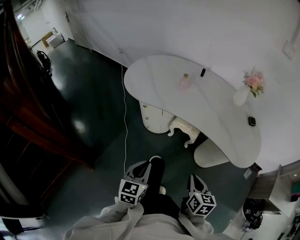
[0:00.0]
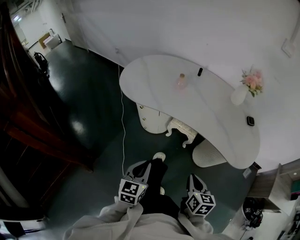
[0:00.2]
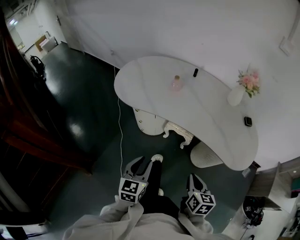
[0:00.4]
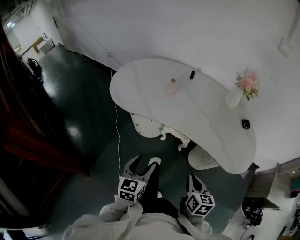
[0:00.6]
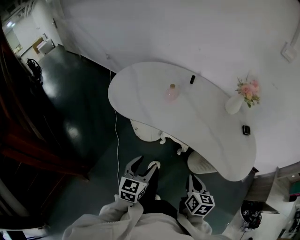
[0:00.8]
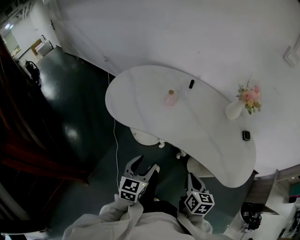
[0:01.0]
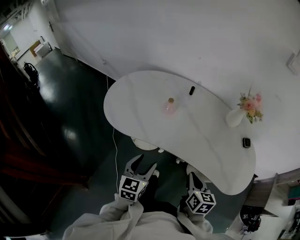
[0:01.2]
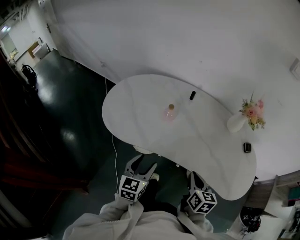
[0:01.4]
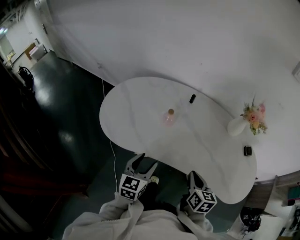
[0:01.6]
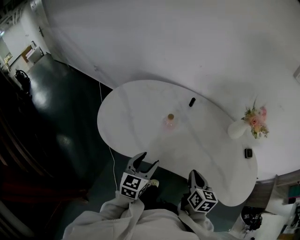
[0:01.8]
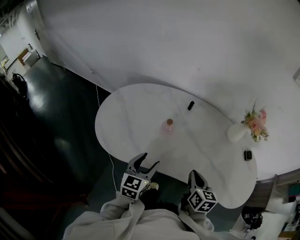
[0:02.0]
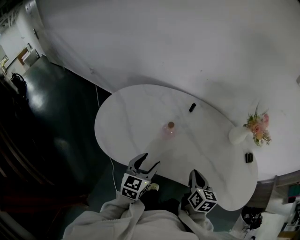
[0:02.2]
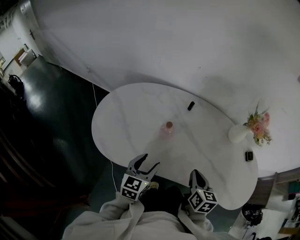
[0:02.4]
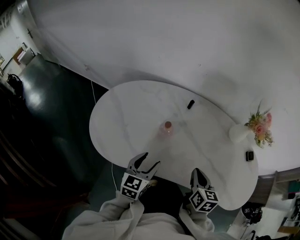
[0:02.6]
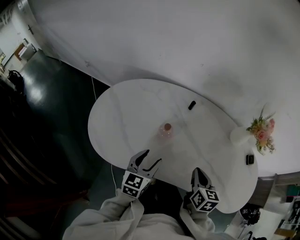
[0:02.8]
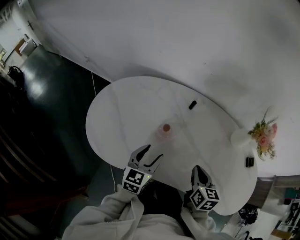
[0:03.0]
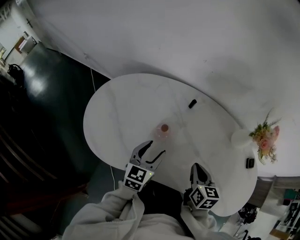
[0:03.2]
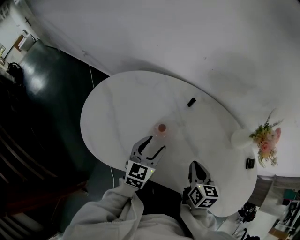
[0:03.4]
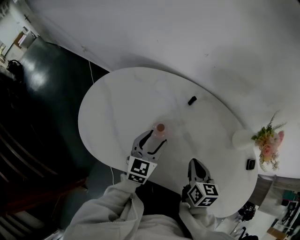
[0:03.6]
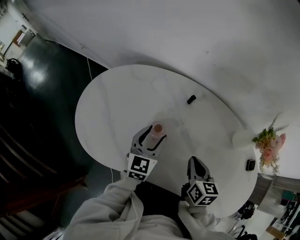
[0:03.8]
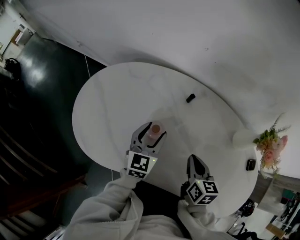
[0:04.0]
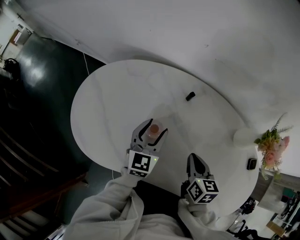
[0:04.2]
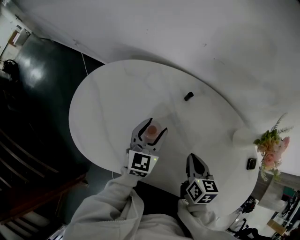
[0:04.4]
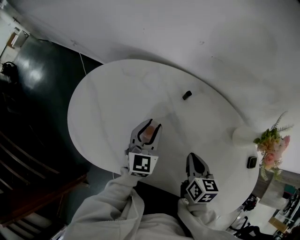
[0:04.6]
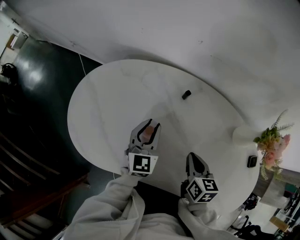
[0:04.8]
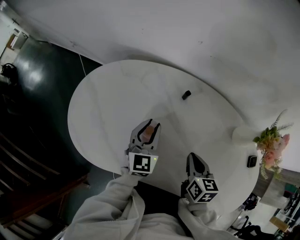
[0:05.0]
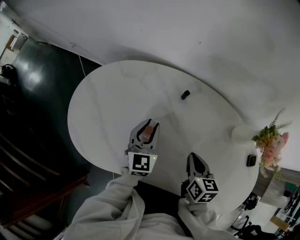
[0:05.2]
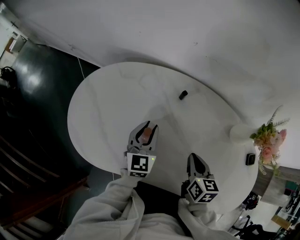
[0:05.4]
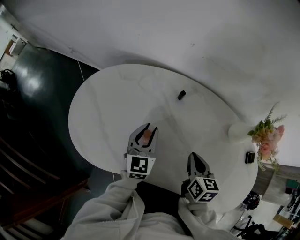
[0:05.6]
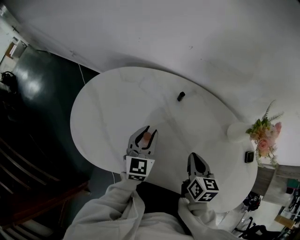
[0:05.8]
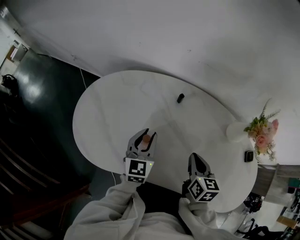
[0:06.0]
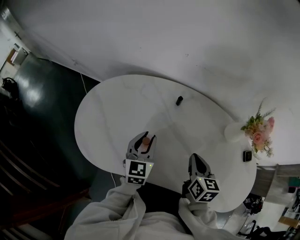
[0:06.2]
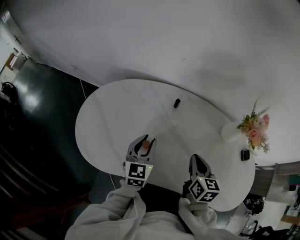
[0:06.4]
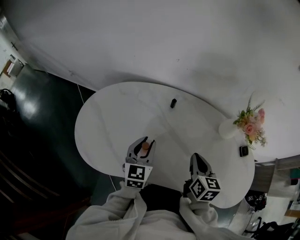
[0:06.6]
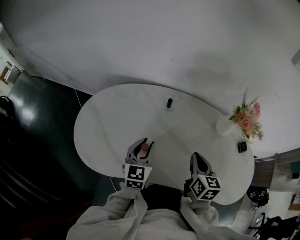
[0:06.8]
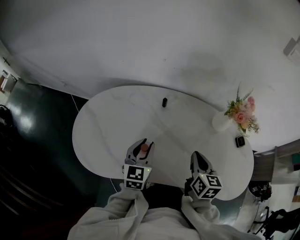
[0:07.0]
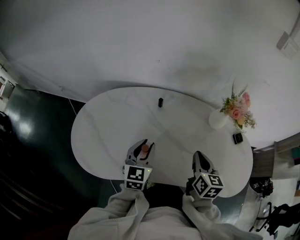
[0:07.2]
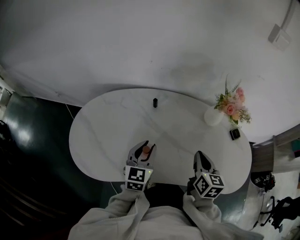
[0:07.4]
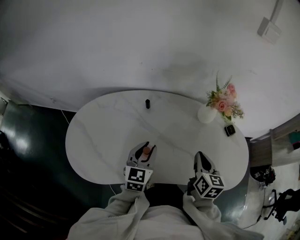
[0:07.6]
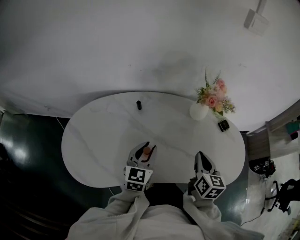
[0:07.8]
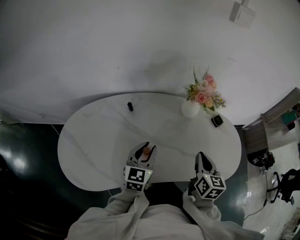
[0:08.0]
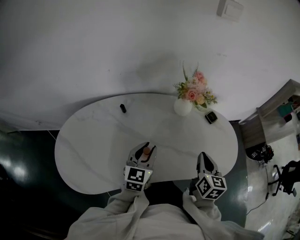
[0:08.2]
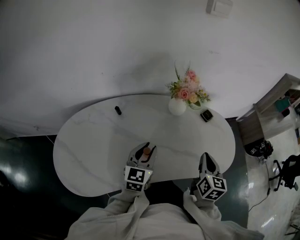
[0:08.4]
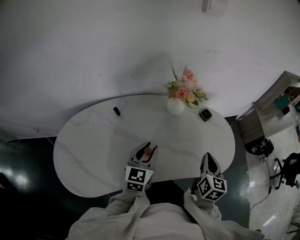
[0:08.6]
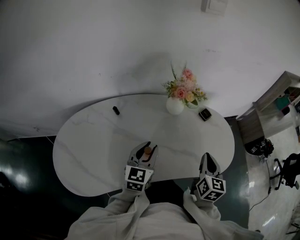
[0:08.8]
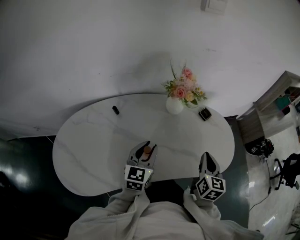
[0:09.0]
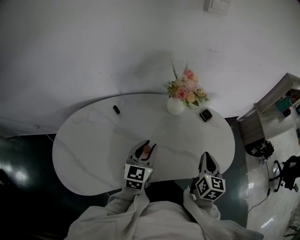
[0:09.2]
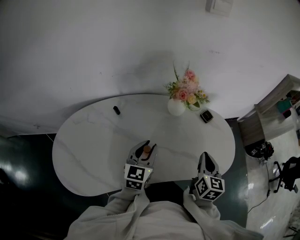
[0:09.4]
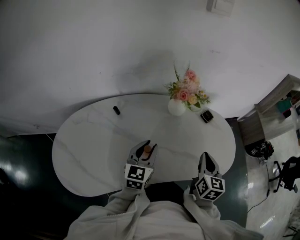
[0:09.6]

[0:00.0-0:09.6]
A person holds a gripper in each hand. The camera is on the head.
0:00.0 to 0:01.6: The two grippers go roughly 30 cm forward. The left gripper opens.
0:01.6 to 0:03.2: The two grippers go roughly 15 cm forward.
0:03.2 to 0:04.8: The right gripper travels forward by some 5 cm; the left gripper moves forward, some 10 cm, and closes.
0:04.8 to 0:06.4: The left gripper is displaced backward by some 5 cm; the right gripper shifts approximately 5 cm upward.
0:06.4 to 0:08.0: The right gripper ends up approximately 20 cm from where it was, and rotates roughly 30 degrees. The left gripper changes place by roughly 15 cm, and rotates approximately 30 degrees.
0:08.0 to 0:09.6: Both grippers move to the right, roughly 5 cm.

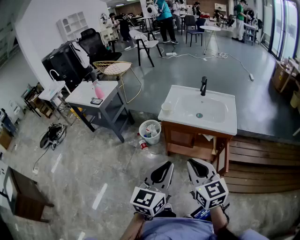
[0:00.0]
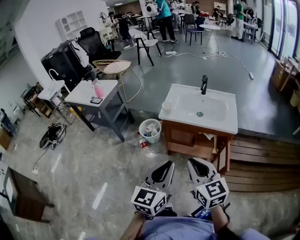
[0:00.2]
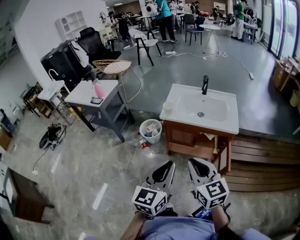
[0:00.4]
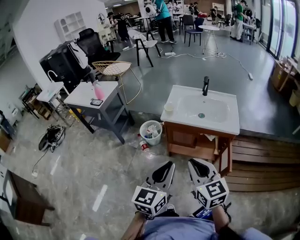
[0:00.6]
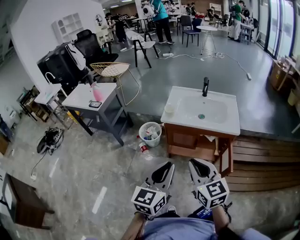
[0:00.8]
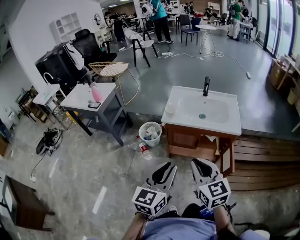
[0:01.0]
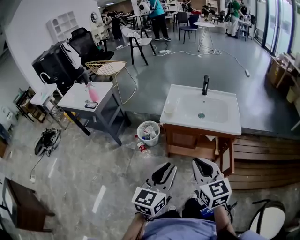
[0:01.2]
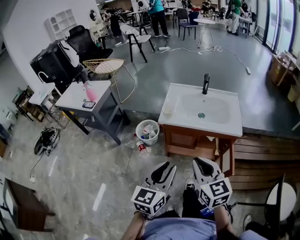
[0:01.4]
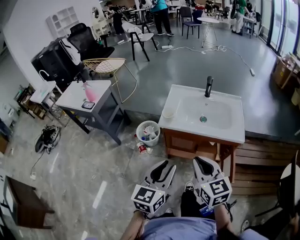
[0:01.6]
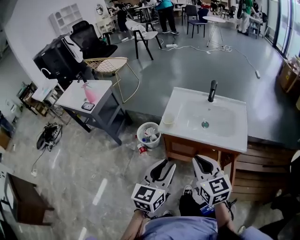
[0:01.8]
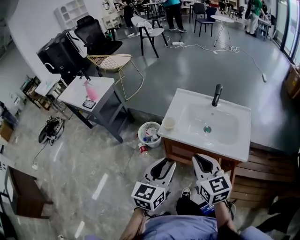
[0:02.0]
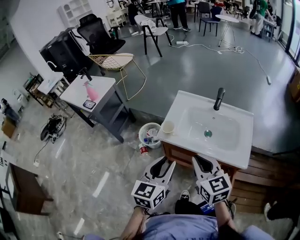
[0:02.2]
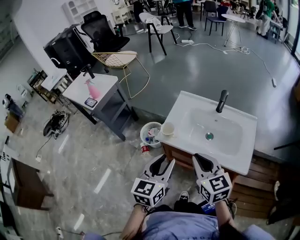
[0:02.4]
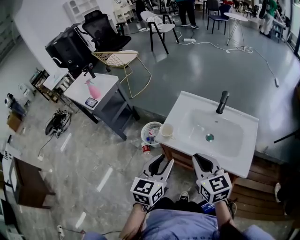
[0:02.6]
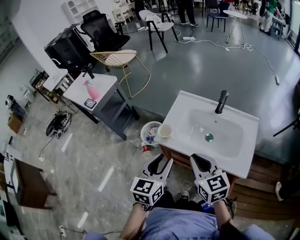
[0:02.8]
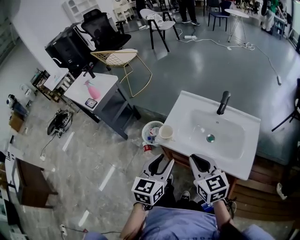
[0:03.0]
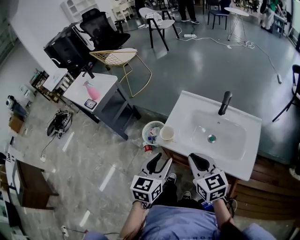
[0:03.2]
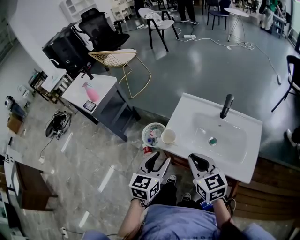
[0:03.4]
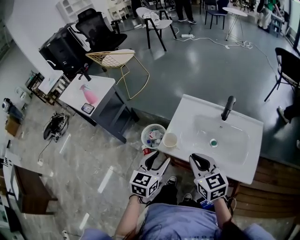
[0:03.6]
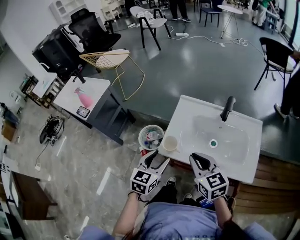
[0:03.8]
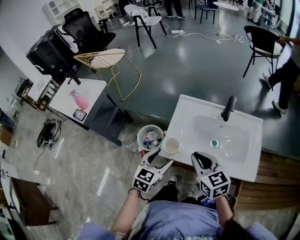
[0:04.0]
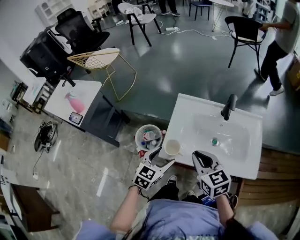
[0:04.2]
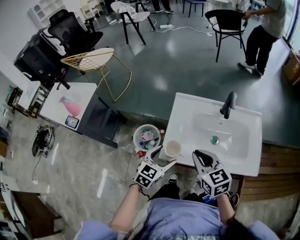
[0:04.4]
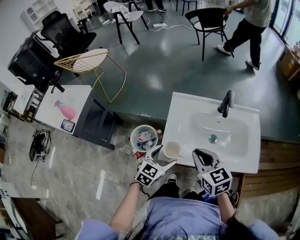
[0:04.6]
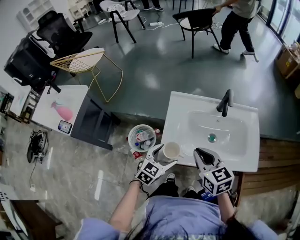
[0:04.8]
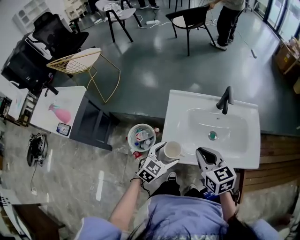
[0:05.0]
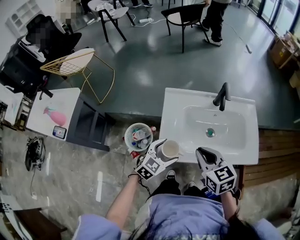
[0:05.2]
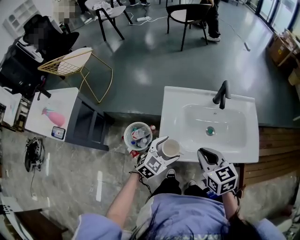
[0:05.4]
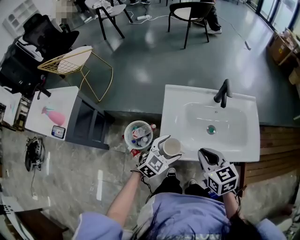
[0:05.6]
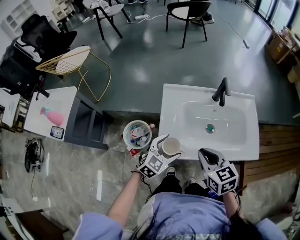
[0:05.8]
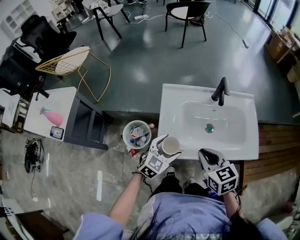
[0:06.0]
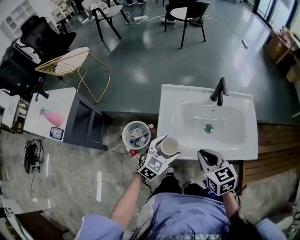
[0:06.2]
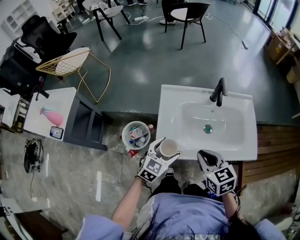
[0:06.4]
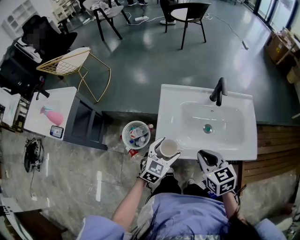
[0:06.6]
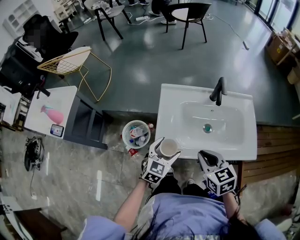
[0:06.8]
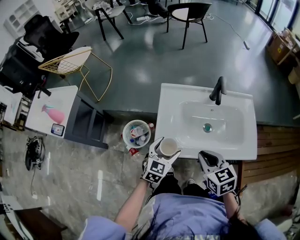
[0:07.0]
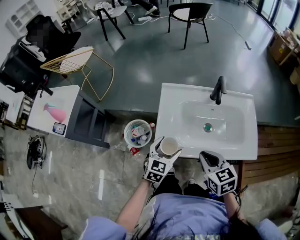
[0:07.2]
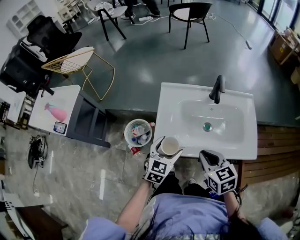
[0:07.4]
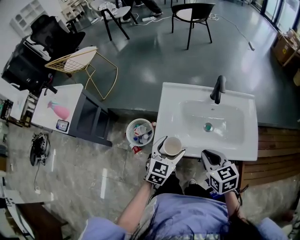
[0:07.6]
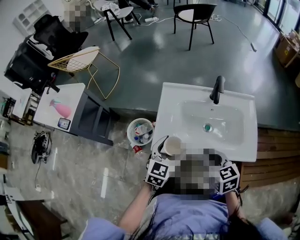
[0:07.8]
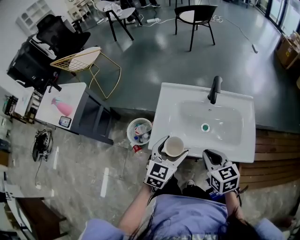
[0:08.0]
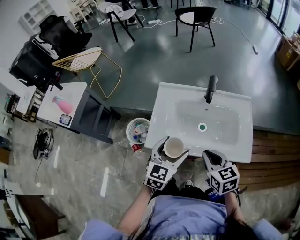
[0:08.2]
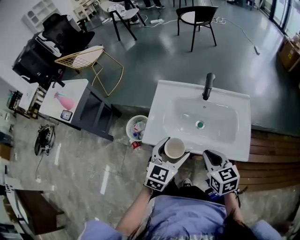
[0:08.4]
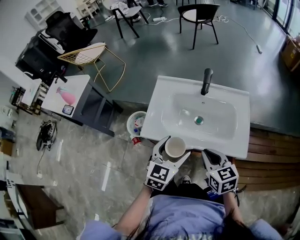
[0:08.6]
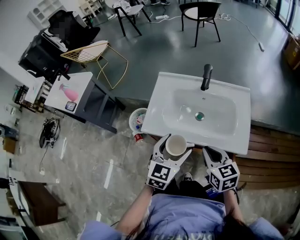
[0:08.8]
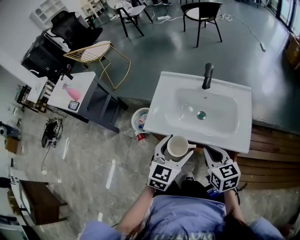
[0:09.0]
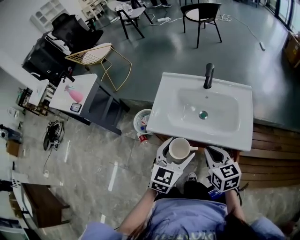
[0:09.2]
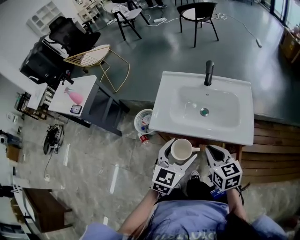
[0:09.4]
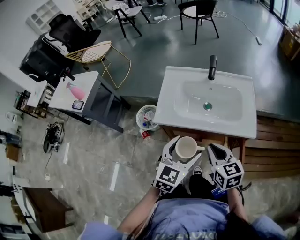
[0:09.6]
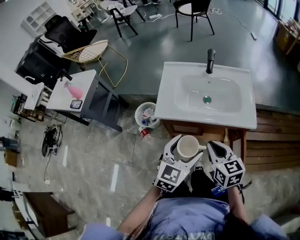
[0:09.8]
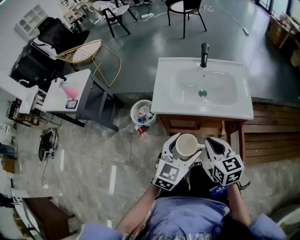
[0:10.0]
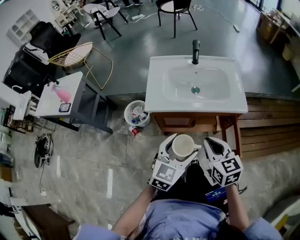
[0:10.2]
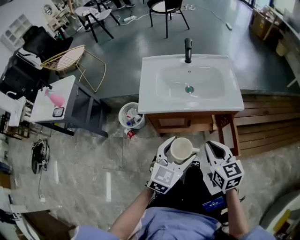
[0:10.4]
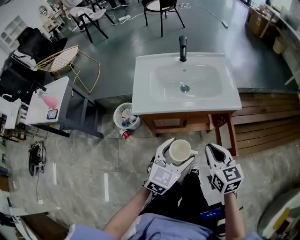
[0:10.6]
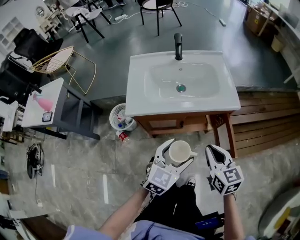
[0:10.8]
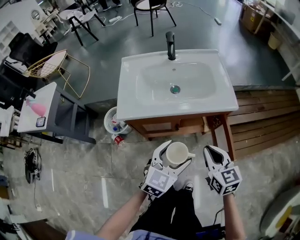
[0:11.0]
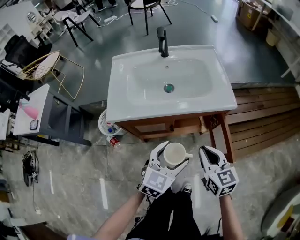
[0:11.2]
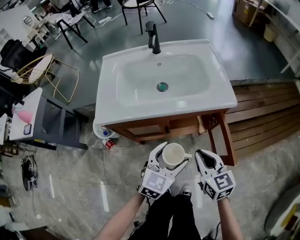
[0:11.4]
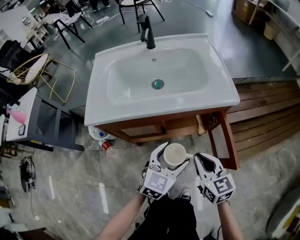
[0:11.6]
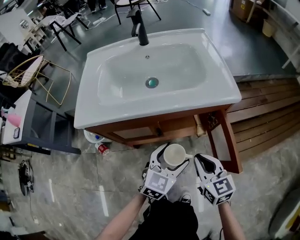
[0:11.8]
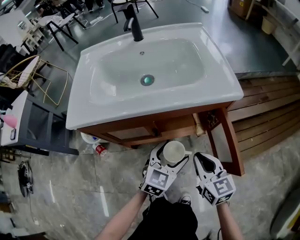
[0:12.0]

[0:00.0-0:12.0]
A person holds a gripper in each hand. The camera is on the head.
0:00.0 to 0:01.6: The right gripper moves forward, about 15 cm. The left gripper is displaced forward and downward by some 15 cm.
0:01.6 to 0:03.0: Both grippers move forward, approximately 20 cm.
0:03.0 to 0:04.4: The left gripper is displaced downward and forward by some 20 cm, turns by roughly 30 degrees, and opens its fingers. Meanwhile the right gripper goes approximately 15 cm forward, downward and to the left.
0:04.4 to 0:06.0: The left gripper changes place by about 5 cm.
0:06.0 to 0:07.6: The right gripper shifts by approximately 5 cm. Meanwhile the left gripper ends up some 5 cm from where it was.
0:07.6 to 0:09.0: The right gripper moves to the right and backward, roughly 15 cm. The left gripper moves to the right, backward and upward, approximately 20 cm.
0:09.0 to 0:10.4: The two grippers go about 15 cm backward. The left gripper turns by roughly 20 degrees.
0:10.4 to 0:12.0: The left gripper moves downward, to the right and forward, roughly 35 cm. Meanwhile the right gripper is displaced downward by roughly 30 cm.

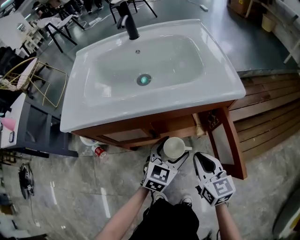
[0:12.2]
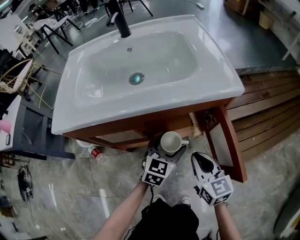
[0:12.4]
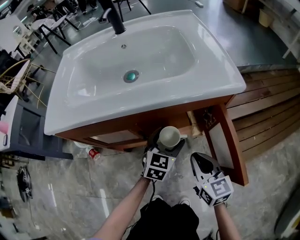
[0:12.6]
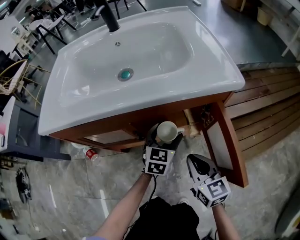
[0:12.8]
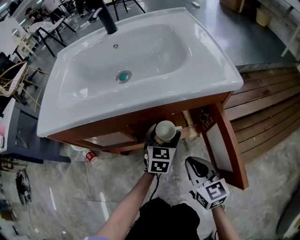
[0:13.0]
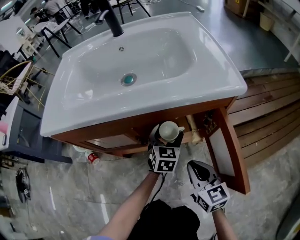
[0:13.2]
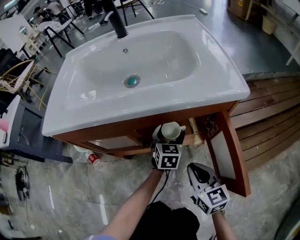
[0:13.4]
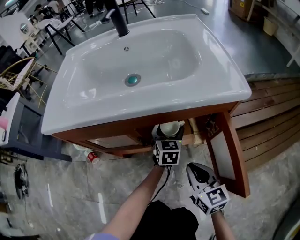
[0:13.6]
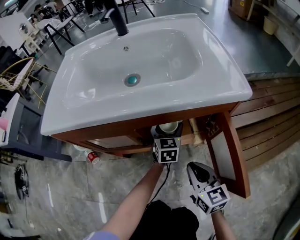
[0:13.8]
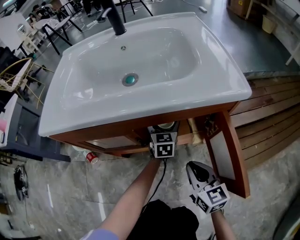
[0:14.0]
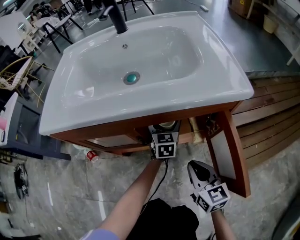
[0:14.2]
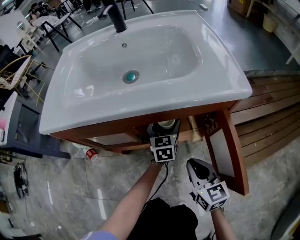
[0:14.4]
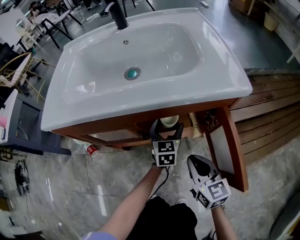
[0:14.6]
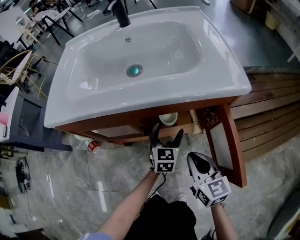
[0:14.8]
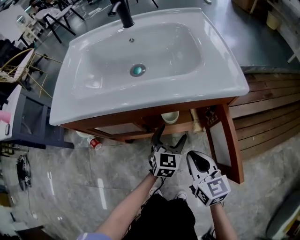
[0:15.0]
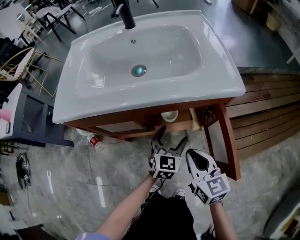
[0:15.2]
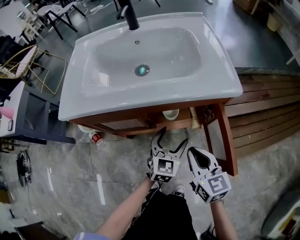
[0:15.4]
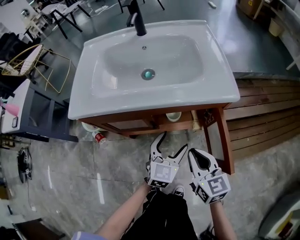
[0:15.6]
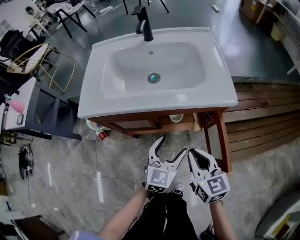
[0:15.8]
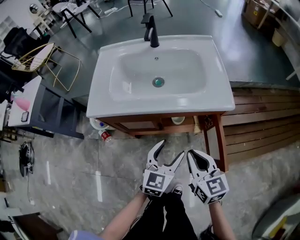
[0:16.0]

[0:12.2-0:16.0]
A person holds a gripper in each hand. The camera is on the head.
0:12.2 to 0:13.4: The left gripper heads forward and downward, covering about 15 cm, and turns by some 20 degrees. The right gripper moves downward, approximately 10 cm.
0:13.4 to 0:14.8: The left gripper shifts by roughly 5 cm.
0:14.8 to 0:16.0: The left gripper is displaced upward and backward by some 25 cm, while the right gripper goes about 20 cm upward.
